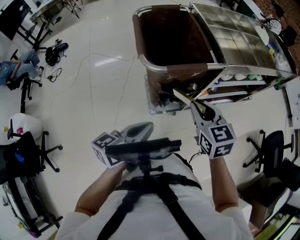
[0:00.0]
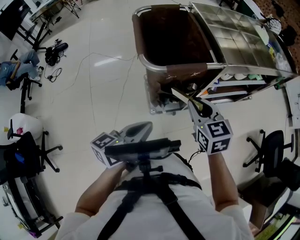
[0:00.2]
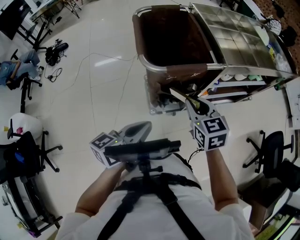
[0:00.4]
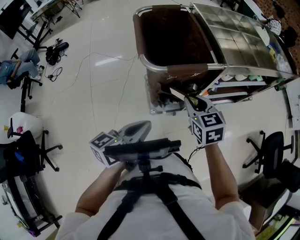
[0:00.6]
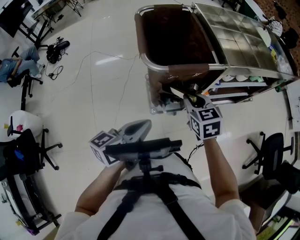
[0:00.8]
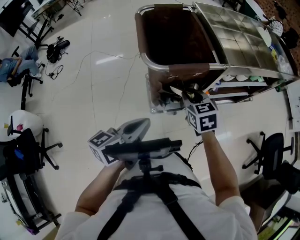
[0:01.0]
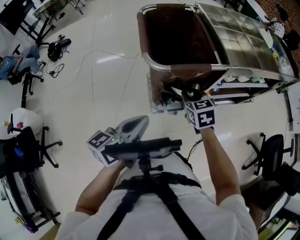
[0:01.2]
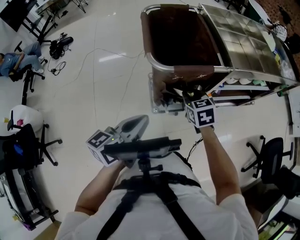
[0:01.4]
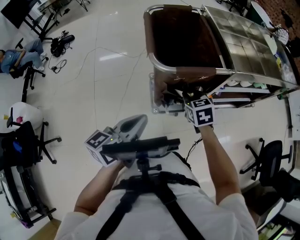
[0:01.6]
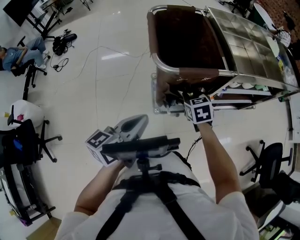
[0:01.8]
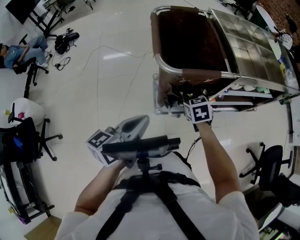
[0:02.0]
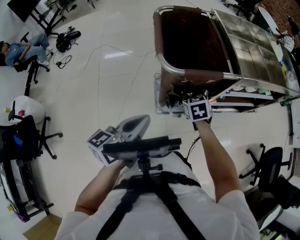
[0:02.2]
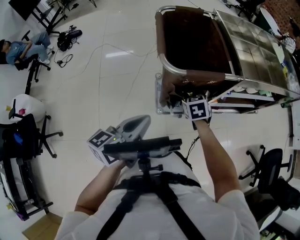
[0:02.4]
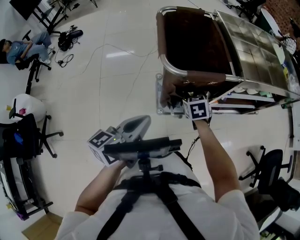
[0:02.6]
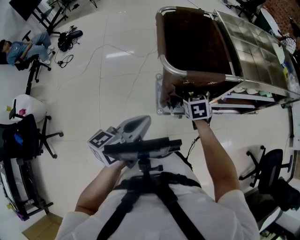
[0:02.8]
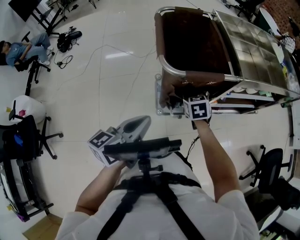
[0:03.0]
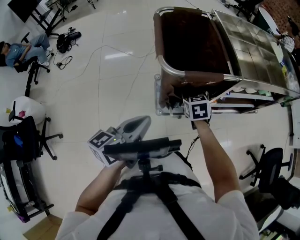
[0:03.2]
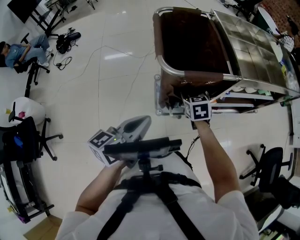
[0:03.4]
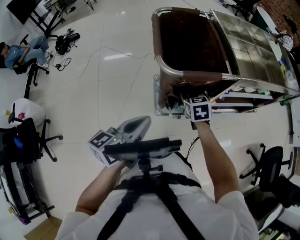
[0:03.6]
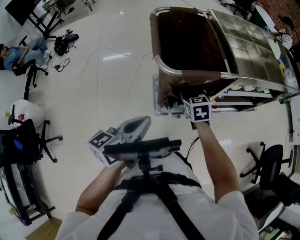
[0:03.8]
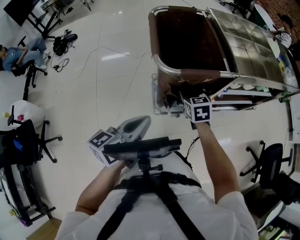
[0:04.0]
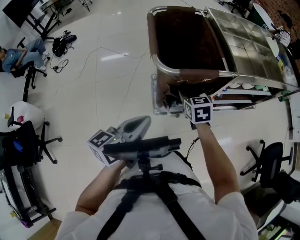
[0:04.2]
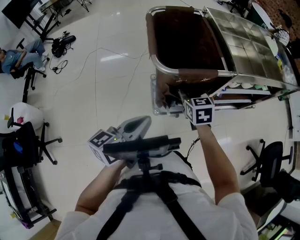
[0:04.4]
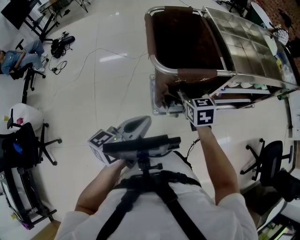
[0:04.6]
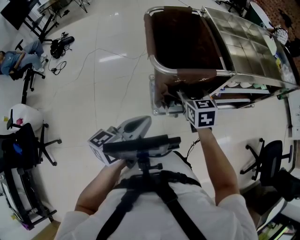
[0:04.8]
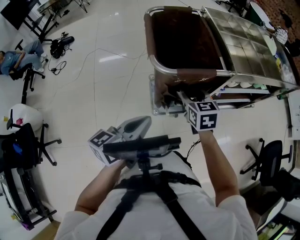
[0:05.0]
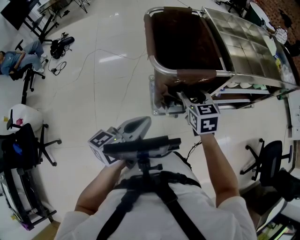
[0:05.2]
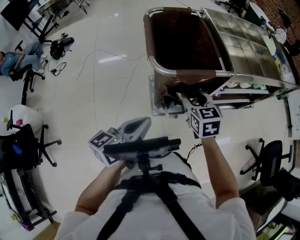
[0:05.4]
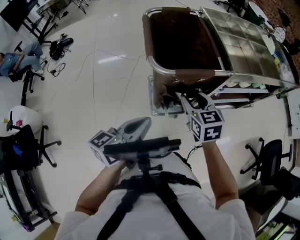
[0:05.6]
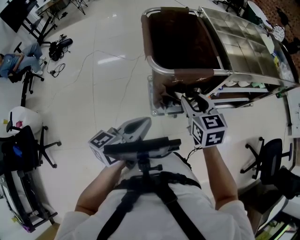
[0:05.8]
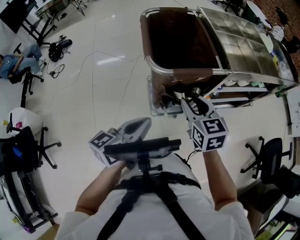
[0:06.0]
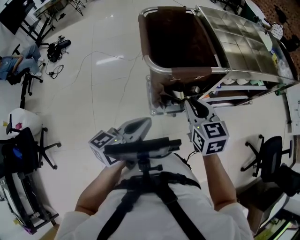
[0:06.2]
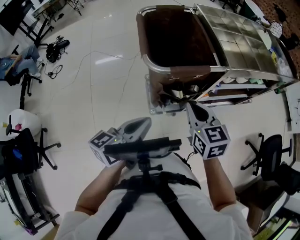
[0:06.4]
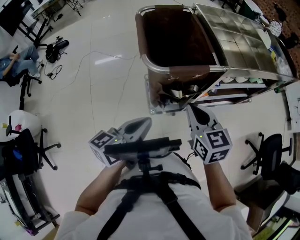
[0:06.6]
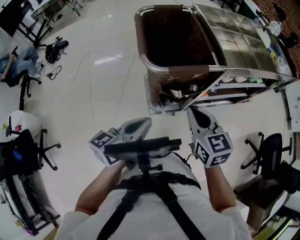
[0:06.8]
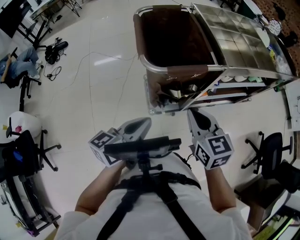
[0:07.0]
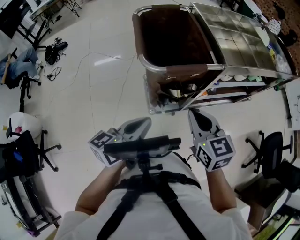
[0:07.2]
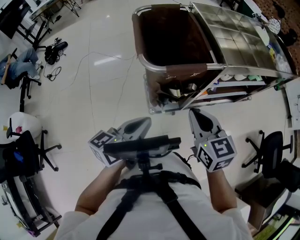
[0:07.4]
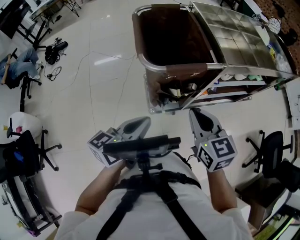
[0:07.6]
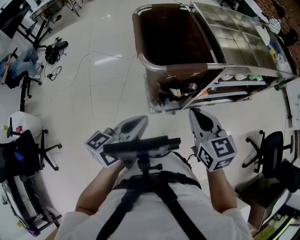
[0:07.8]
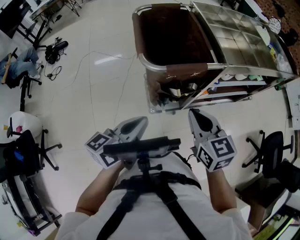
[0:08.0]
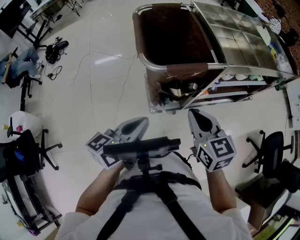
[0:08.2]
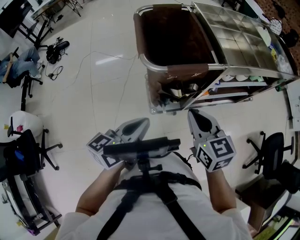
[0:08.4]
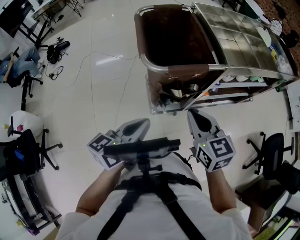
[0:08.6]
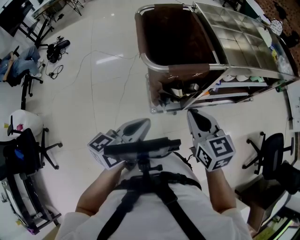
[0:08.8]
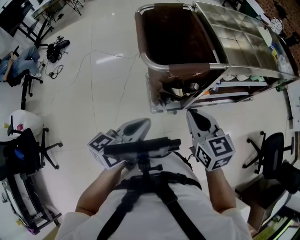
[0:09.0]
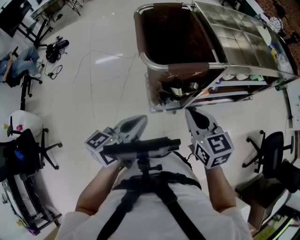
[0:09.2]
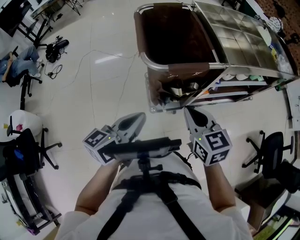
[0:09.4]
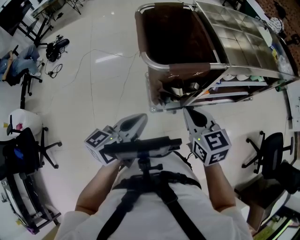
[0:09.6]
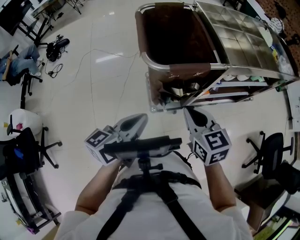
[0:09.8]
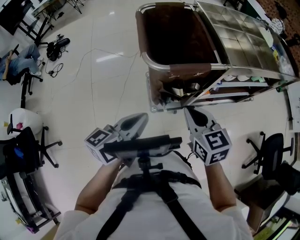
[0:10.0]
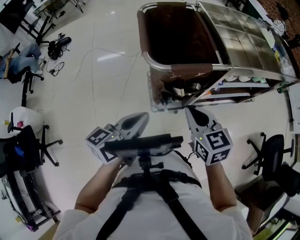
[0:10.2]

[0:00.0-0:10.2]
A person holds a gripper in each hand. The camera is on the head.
0:00.0 to 0:01.4: The right gripper is displaced downward and forward by roughly 15 cm.
0:01.4 to 0:03.0: The right gripper shifts some 5 cm downward.
0:03.0 to 0:04.4: The right gripper goes about 5 cm upward.
0:04.4 to 0:05.8: The right gripper heads upward and backward, covering approximately 10 cm.
0:05.8 to 0:07.2: The right gripper goes roughly 5 cm backward, and closes its fingers.
0:07.2 to 0:10.2: The grippers move only a little.

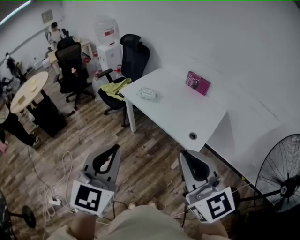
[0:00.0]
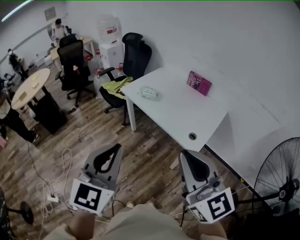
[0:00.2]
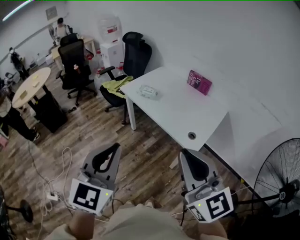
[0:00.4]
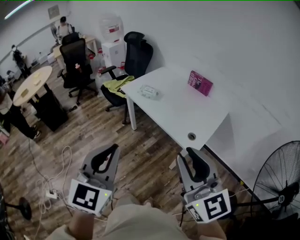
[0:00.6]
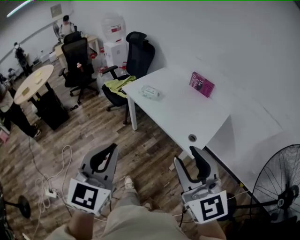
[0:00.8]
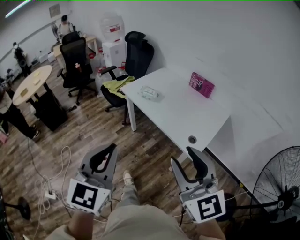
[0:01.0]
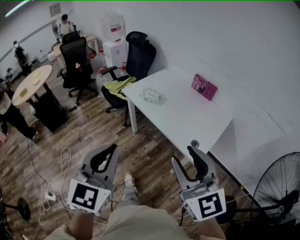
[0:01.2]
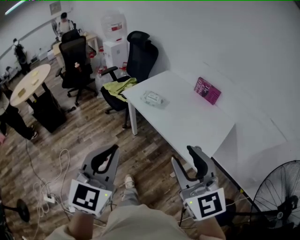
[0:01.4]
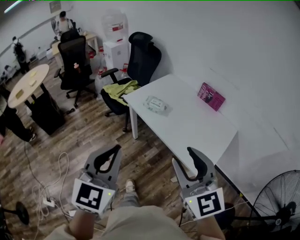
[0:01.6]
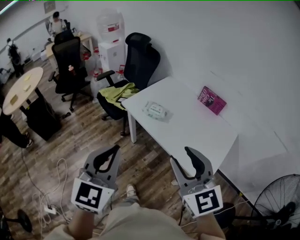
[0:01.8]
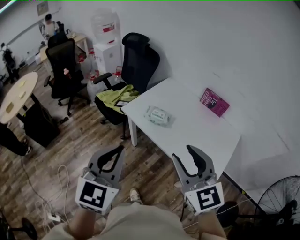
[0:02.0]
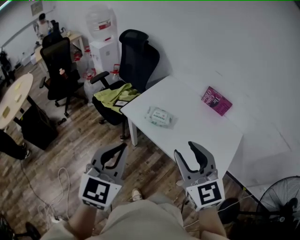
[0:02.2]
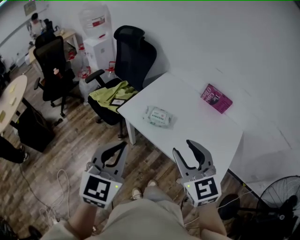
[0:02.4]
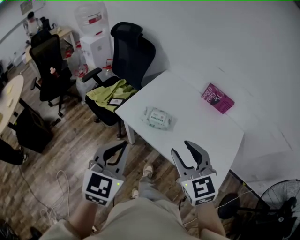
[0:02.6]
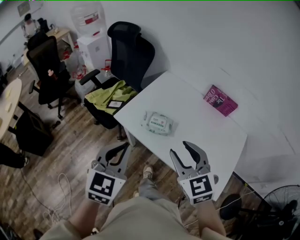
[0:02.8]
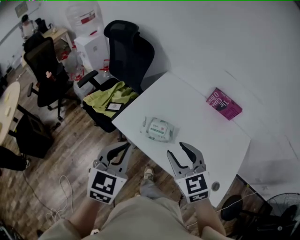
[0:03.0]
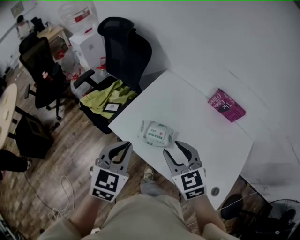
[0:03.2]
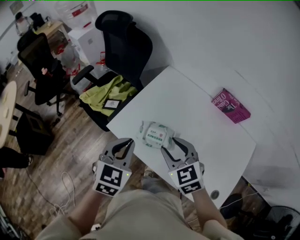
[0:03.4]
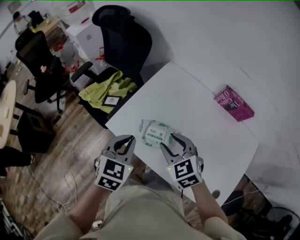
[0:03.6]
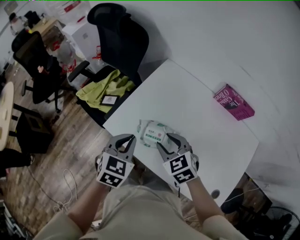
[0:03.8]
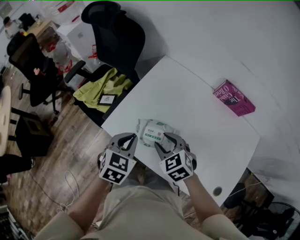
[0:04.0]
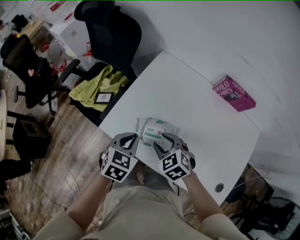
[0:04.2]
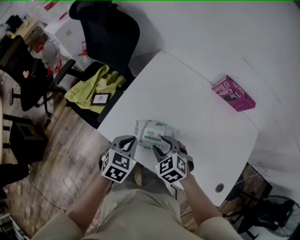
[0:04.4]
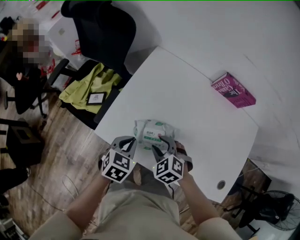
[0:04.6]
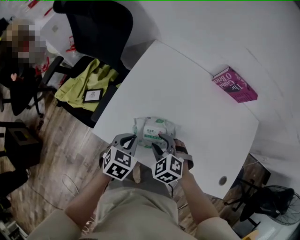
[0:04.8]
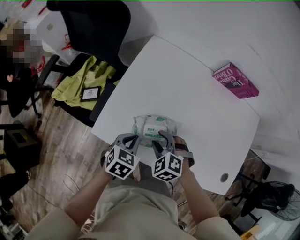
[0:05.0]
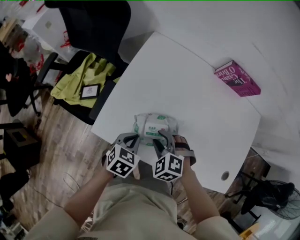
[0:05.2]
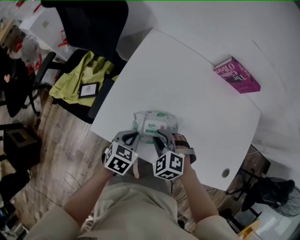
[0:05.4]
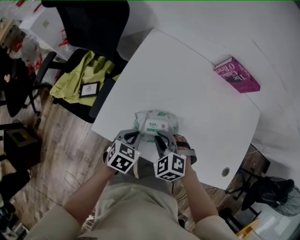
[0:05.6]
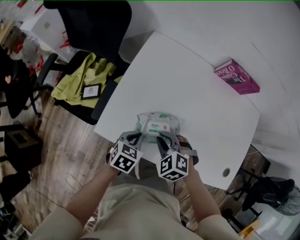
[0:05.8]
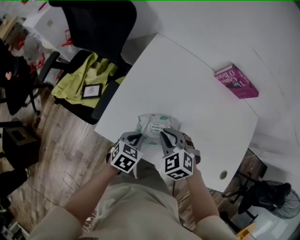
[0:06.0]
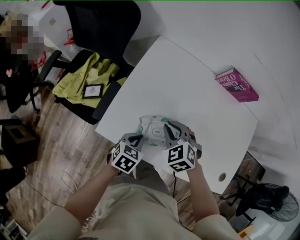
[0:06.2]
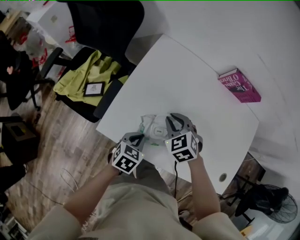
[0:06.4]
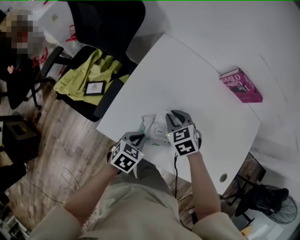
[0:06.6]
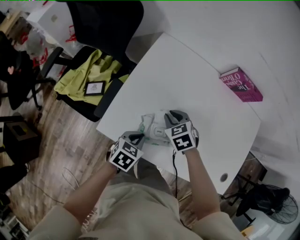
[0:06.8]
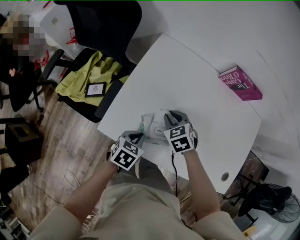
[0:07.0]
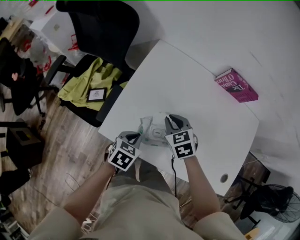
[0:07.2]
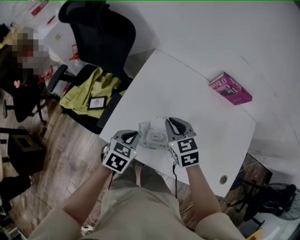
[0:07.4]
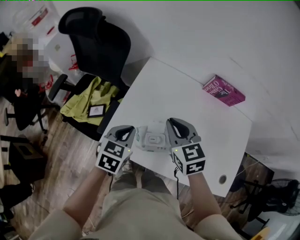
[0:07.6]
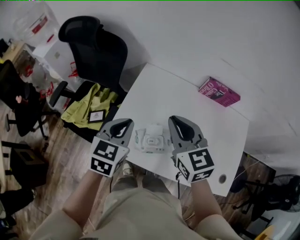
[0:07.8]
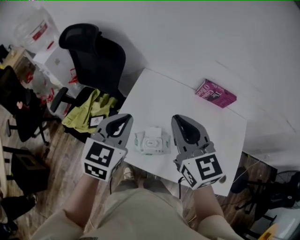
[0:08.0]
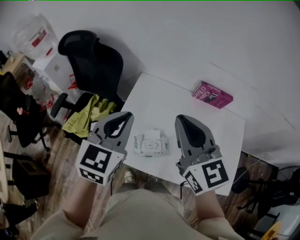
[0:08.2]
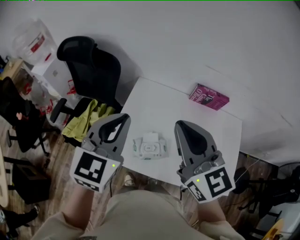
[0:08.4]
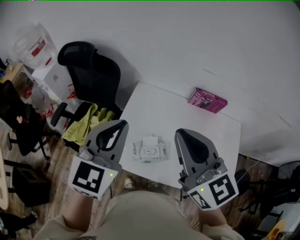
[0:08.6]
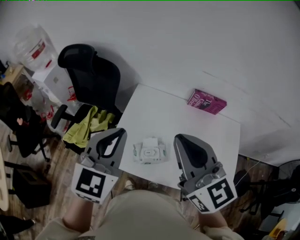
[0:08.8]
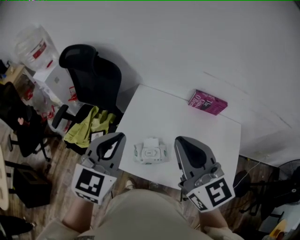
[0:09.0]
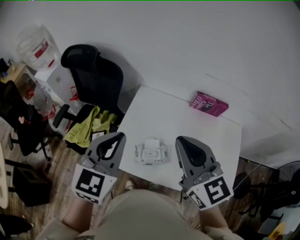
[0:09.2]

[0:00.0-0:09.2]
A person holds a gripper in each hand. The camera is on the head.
0:00.0 to 0:01.6: The two grippers go about 20 cm forward. The right gripper opens up.
0:01.6 to 0:03.0: The two grippers travel together, forward, roughly 40 cm. The left gripper rotates roughly 20 degrees. The right gripper travels downward by approximately 15 cm, and changes its angle by some 20 degrees.
0:03.0 to 0:04.6: The grippers both shift downward and forward by roughly 30 cm. The right gripper angles its fingers downward, by roughly 30 degrees; the left gripper swivels about 30 degrees.
0:04.6 to 0:06.2: The left gripper travels downward by about 5 cm, while the right gripper travels forward by about 5 cm, and closes up.
0:06.2 to 0:07.6: Both grippers travel together upward, about 15 cm. The right gripper turns by roughly 30 degrees.
0:07.6 to 0:09.2: The two grippers go about 25 cm upward. The left gripper turns by approximately 30 degrees, while the right gripper rotates approximately 20 degrees.

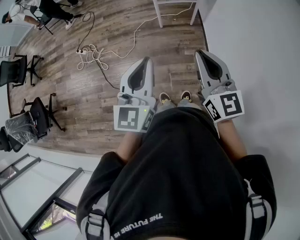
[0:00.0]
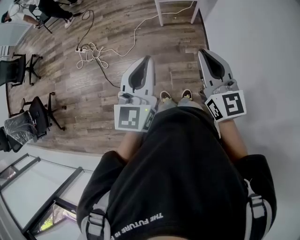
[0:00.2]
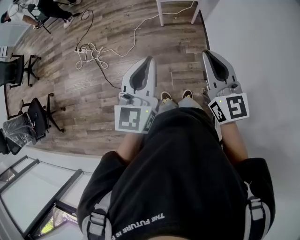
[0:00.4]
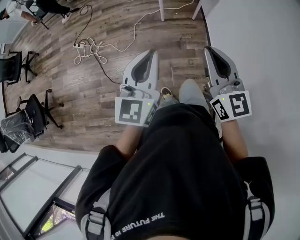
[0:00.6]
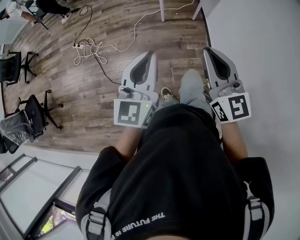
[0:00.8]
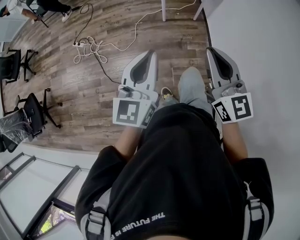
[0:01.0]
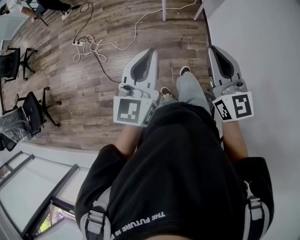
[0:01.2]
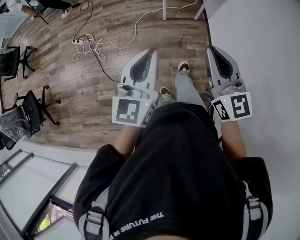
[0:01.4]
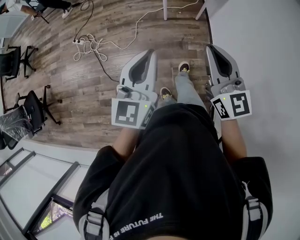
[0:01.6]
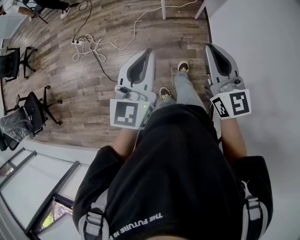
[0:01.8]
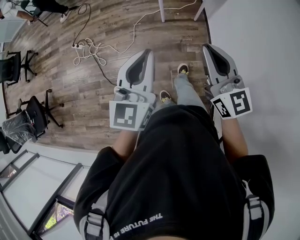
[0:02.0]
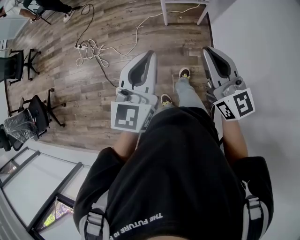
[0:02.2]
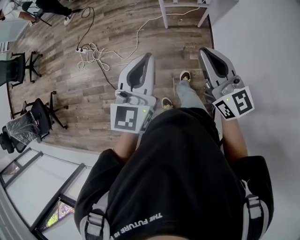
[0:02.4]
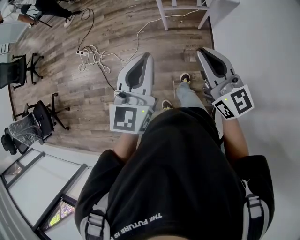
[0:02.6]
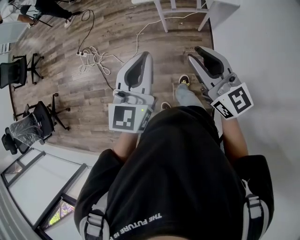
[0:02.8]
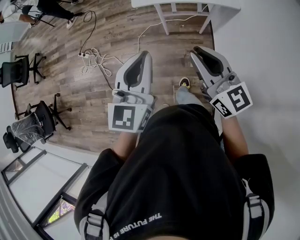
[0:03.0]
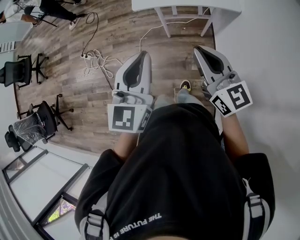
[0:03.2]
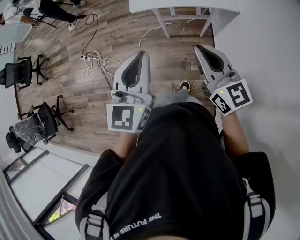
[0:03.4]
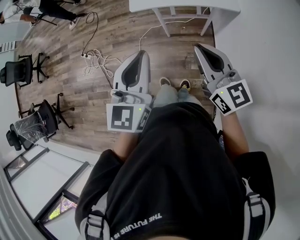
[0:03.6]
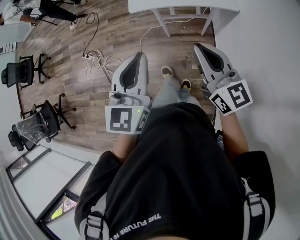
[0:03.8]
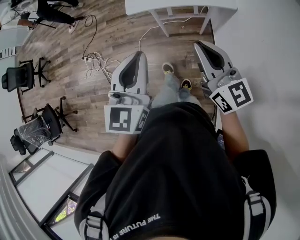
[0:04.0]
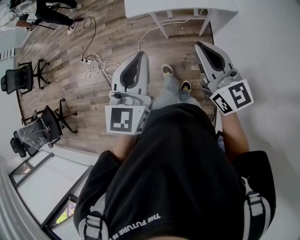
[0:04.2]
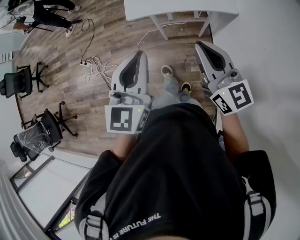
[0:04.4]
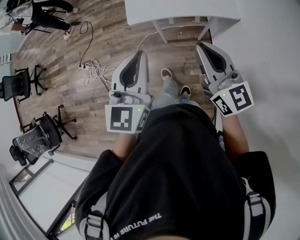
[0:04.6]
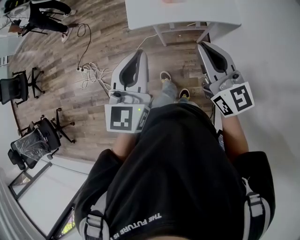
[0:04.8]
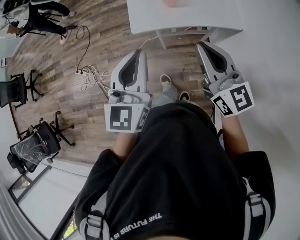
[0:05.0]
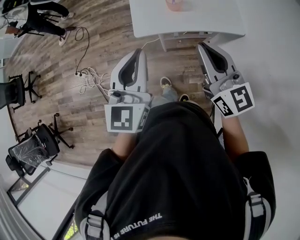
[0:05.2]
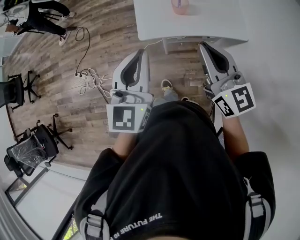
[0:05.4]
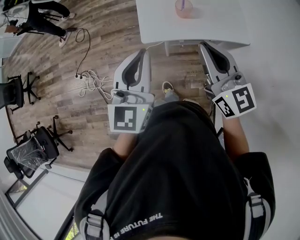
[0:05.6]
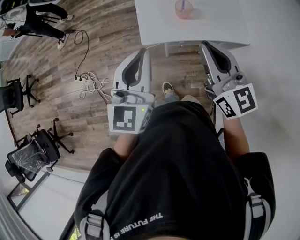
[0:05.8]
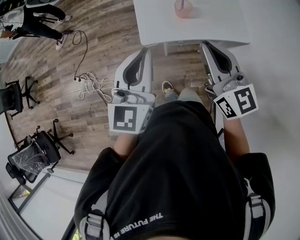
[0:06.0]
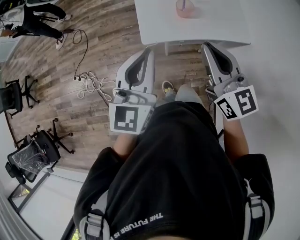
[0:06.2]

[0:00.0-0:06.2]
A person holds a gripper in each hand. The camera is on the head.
0:00.0 to 0:01.6: Both grippers travel together to the left and forward, about 10 cm.
0:01.6 to 0:03.2: Both grippers move forward and to the right, approximately 25 cm. The right gripper opens and closes again.
0:03.2 to 0:04.6: The grippers both shift forward by approximately 10 cm.
0:04.6 to 0:06.2: The grippers both shift forward and to the left by some 20 cm.
